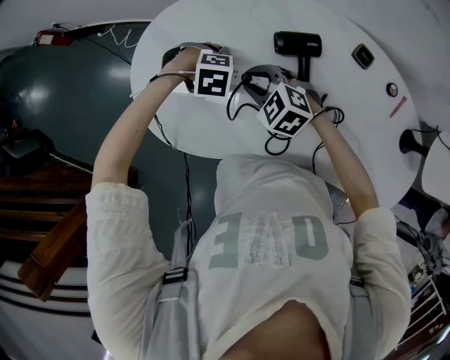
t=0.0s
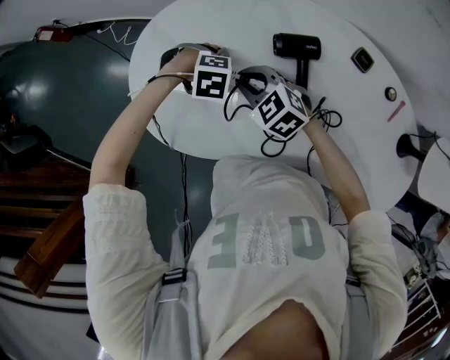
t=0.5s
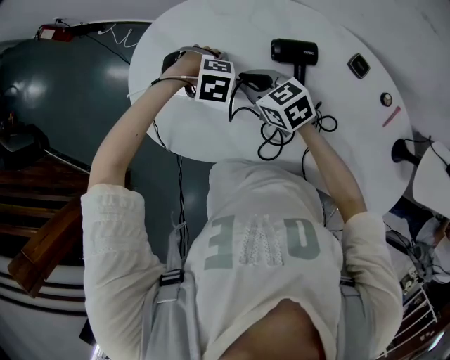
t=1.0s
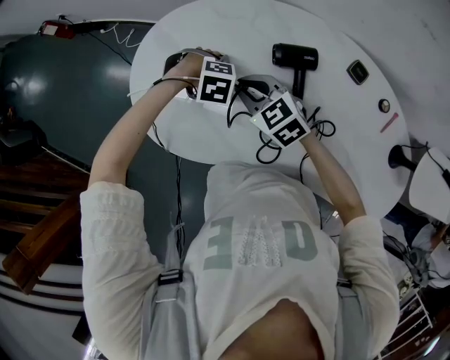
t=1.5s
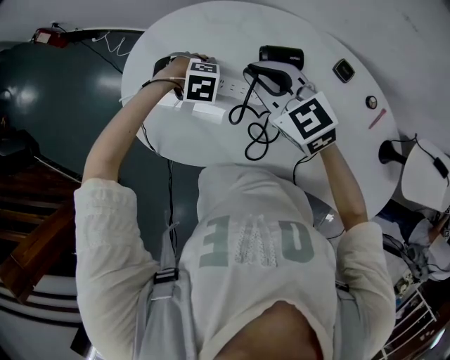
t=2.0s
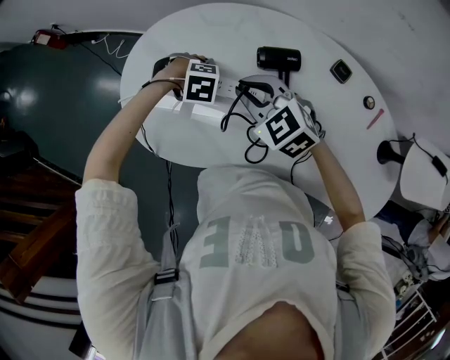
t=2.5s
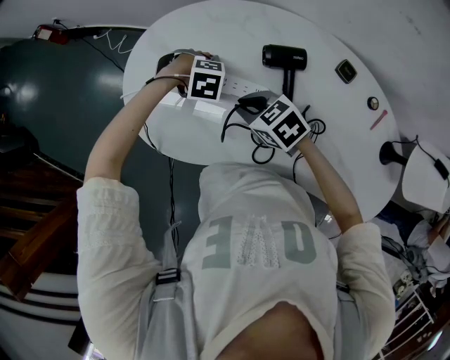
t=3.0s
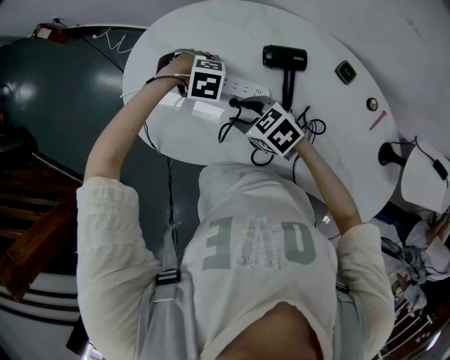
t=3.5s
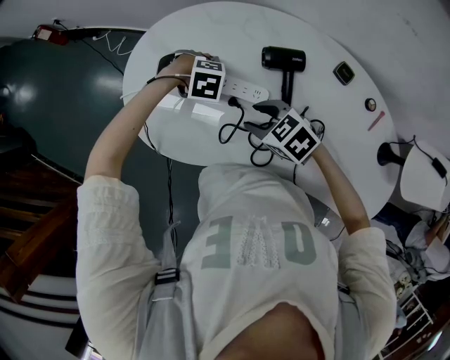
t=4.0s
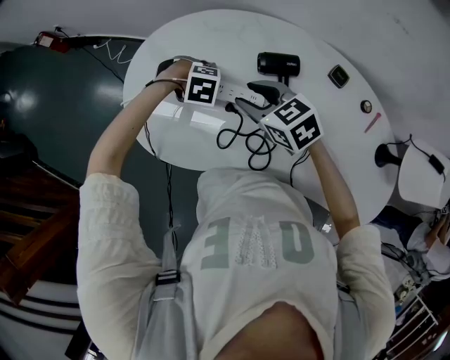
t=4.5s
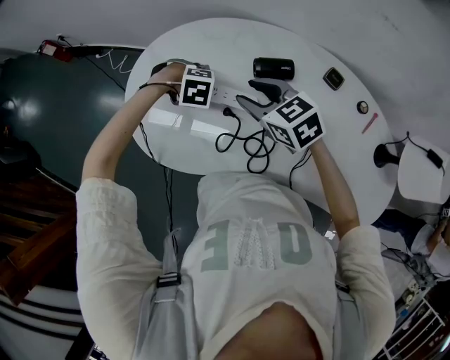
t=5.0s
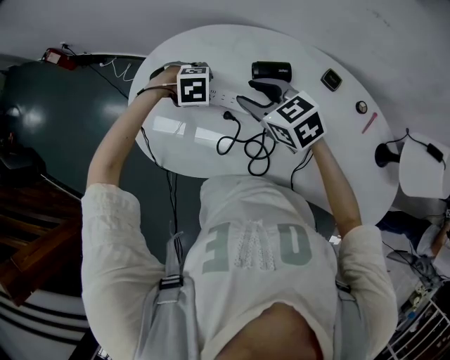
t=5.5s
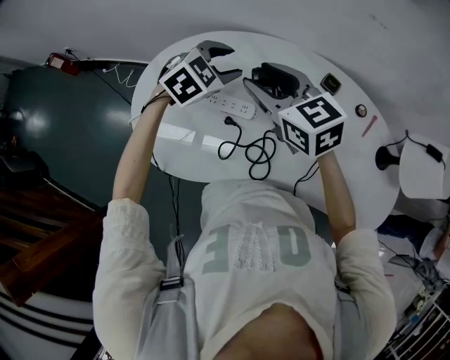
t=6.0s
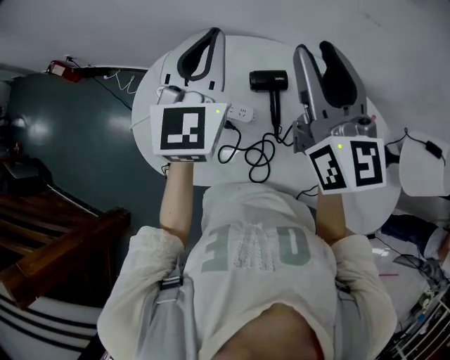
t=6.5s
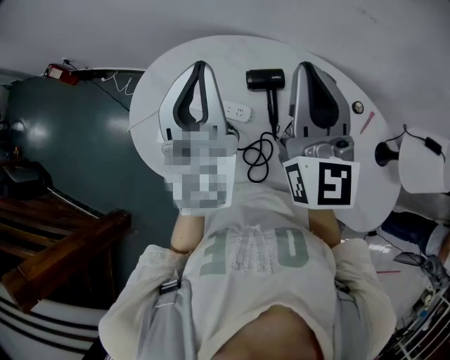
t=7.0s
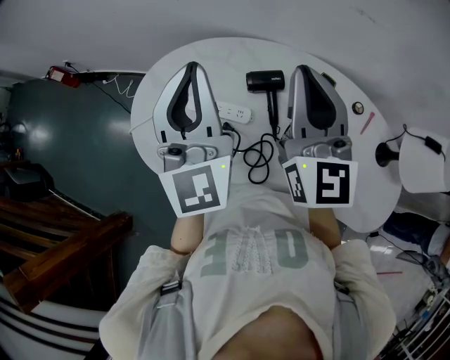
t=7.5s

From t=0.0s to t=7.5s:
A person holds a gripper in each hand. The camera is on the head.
From t=0.0s to t=2.0s: The right gripper goes some 15 cm upward, and turns by approximately 30 degrees.
From t=2.0s to t=4.0s: The right gripper goes about 15 cm downward, changes its angle by about 30 degrees, and opens up.
From t=4.0s to t=5.5s: The right gripper is displaced upward by roughly 10 cm, and swivels approximately 20 degrees, while the left gripper moves approximately 5 cm.
From t=5.5s to t=7.5s: The right gripper heads upward, covering approximately 20 cm, points its fingers approximately 40 degrees further upward, and closes its fingers; the left gripper heads upward, covering some 35 cm, angles its fingers upward, by roughly 90 degrees, and closes its fingers.

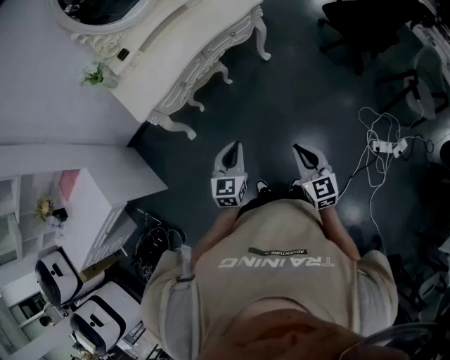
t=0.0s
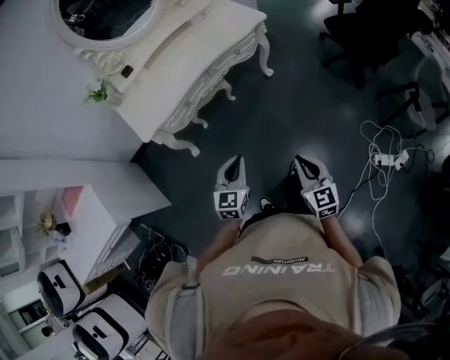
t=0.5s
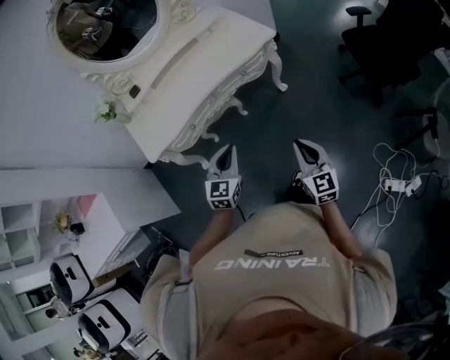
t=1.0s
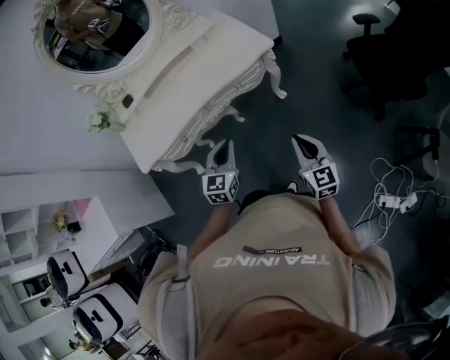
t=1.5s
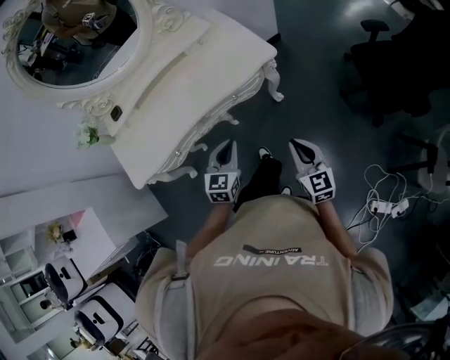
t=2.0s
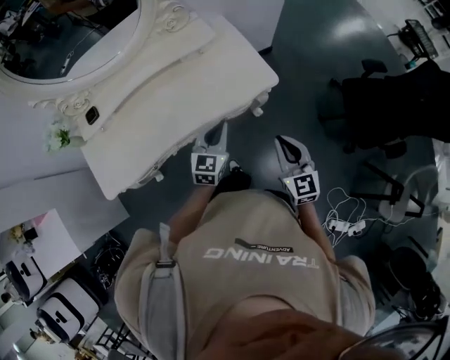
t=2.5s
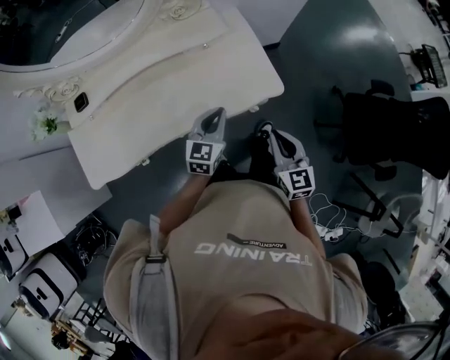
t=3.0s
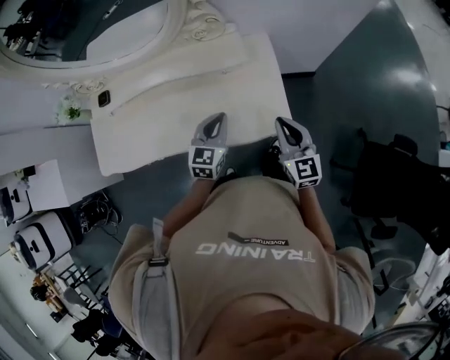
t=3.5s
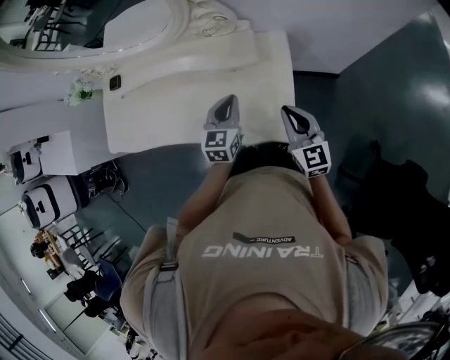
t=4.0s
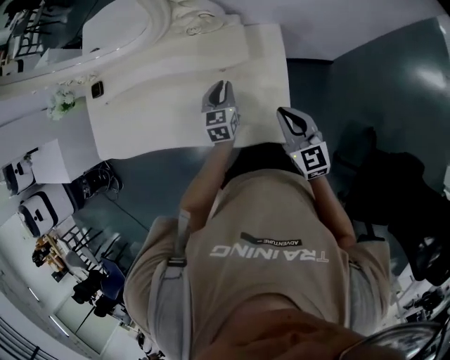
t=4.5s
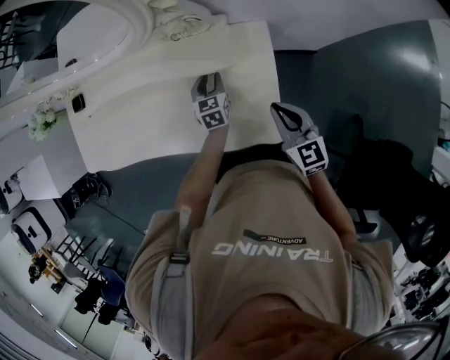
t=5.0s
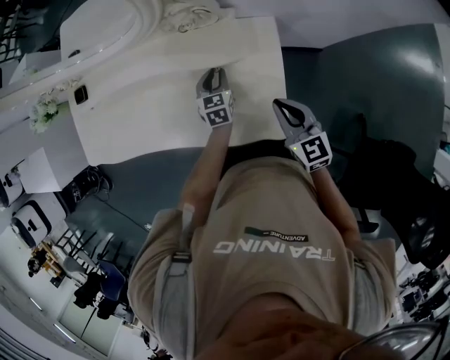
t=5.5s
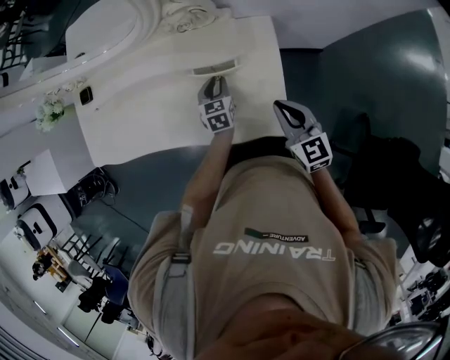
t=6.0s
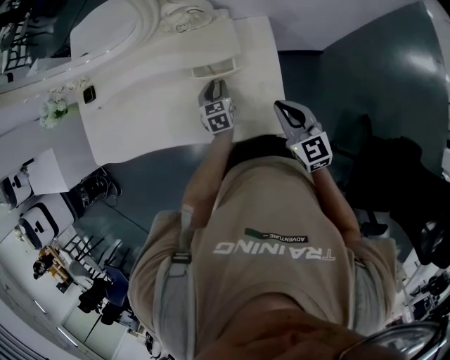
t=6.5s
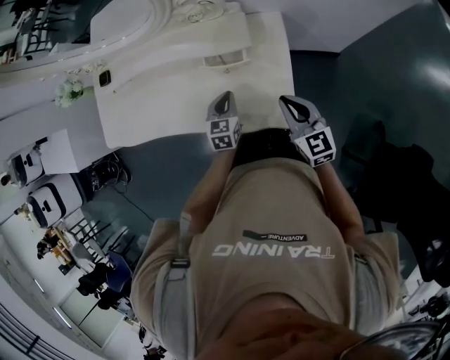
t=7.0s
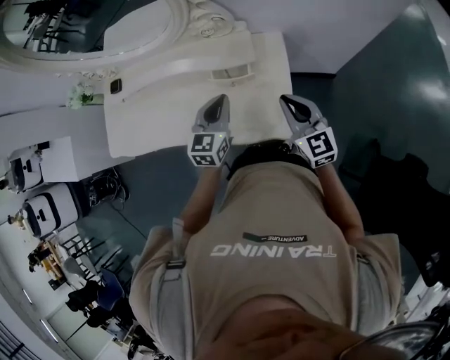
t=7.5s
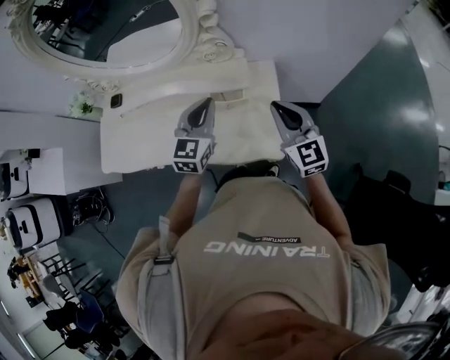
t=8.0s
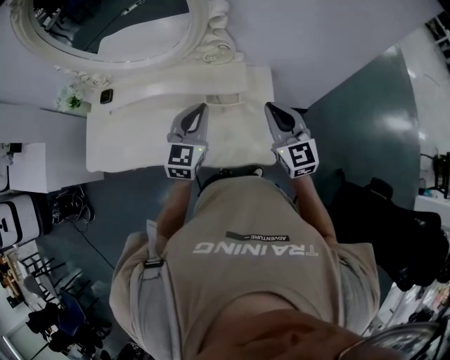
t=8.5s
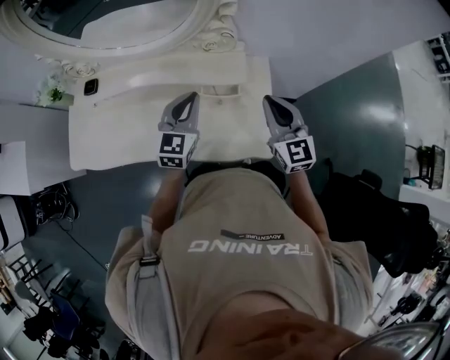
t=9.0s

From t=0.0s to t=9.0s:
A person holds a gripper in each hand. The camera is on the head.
From t=0.0s to t=2.0s: The two grippers travel together, forward, about 50 cm.
From t=2.0s to t=4.5s: The pair of grippers is taken some 60 cm. The left gripper turns by about 40 degrees, while the right gripper changes its angle by about 40 degrees.
From t=4.5s to t=7.0s: The left gripper heads backward, covering some 10 cm.
From t=7.0s to t=9.0s: The right gripper is displaced upward, to the left and forward by about 15 cm, and rotates approximately 20 degrees. The left gripper shifts approximately 20 cm upward and to the left, and swivels approximately 30 degrees.

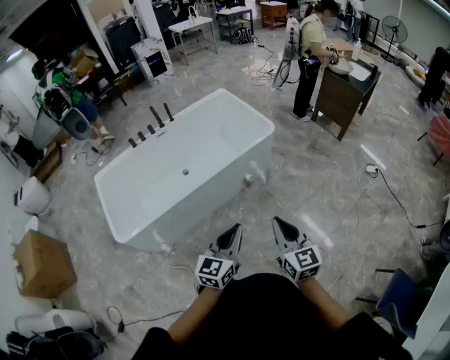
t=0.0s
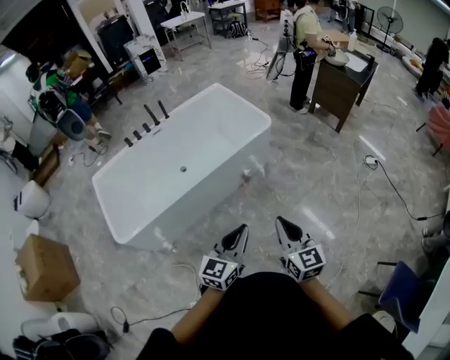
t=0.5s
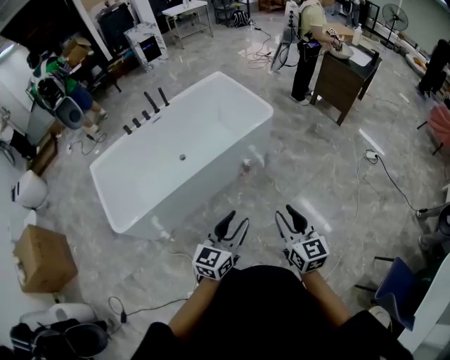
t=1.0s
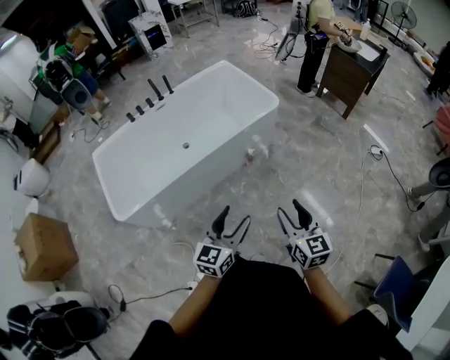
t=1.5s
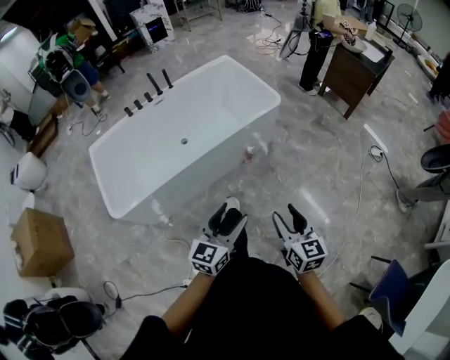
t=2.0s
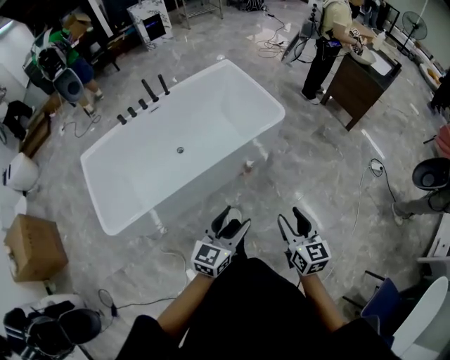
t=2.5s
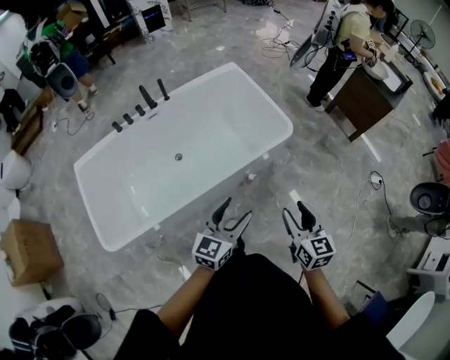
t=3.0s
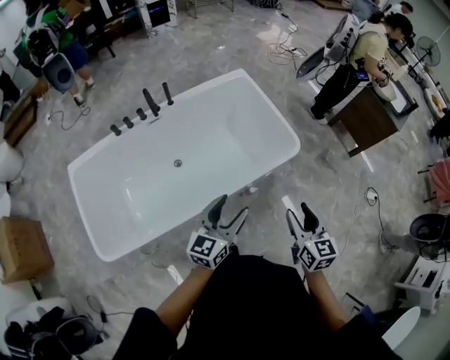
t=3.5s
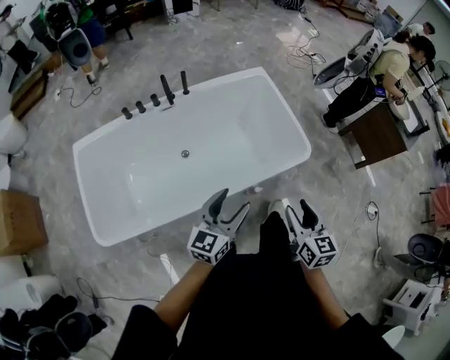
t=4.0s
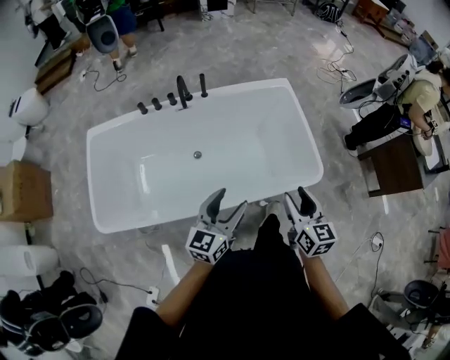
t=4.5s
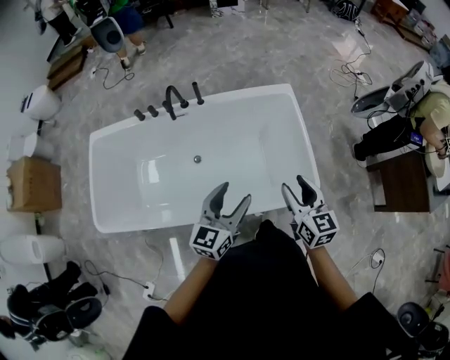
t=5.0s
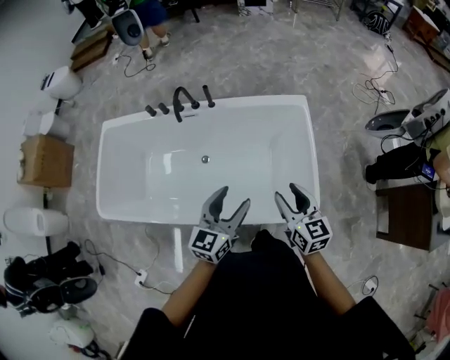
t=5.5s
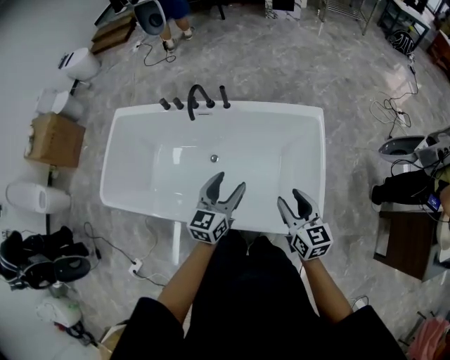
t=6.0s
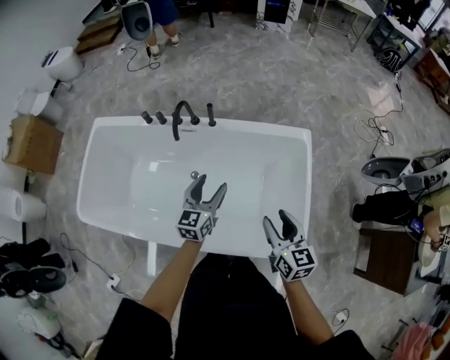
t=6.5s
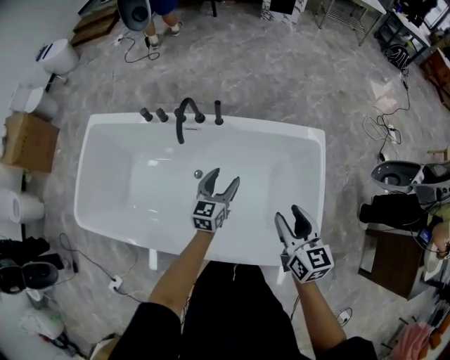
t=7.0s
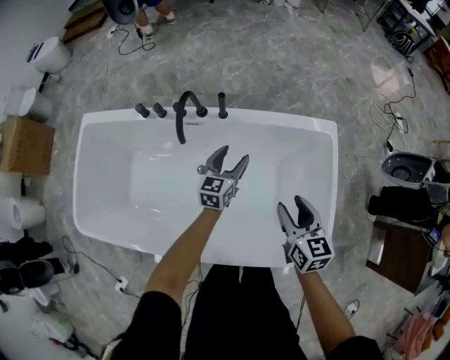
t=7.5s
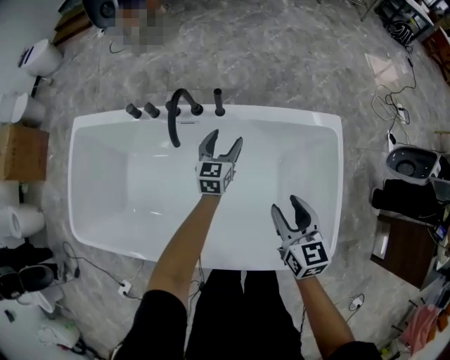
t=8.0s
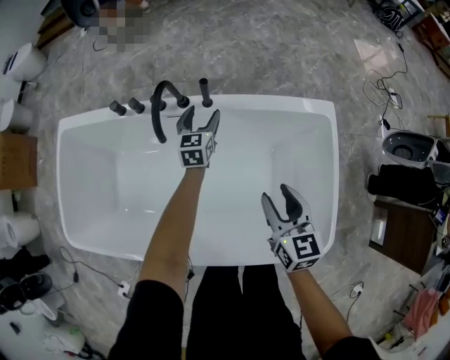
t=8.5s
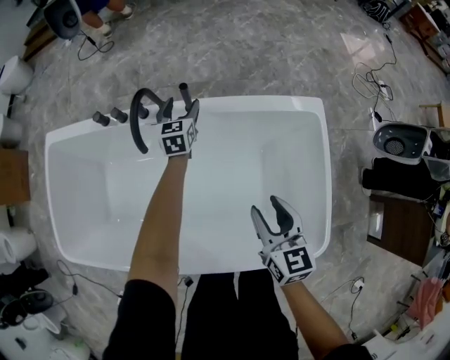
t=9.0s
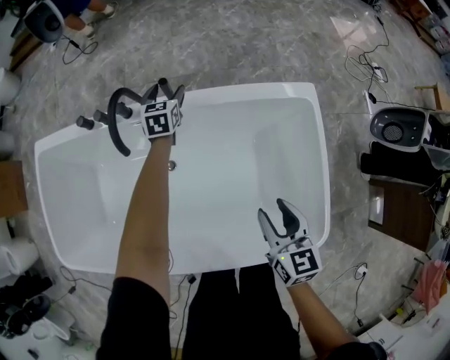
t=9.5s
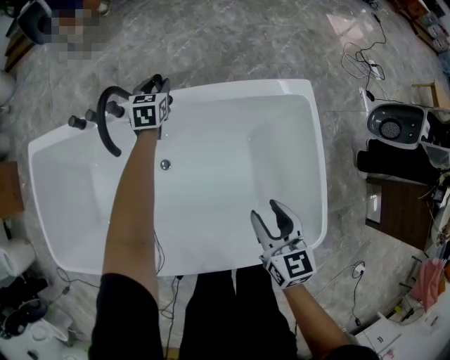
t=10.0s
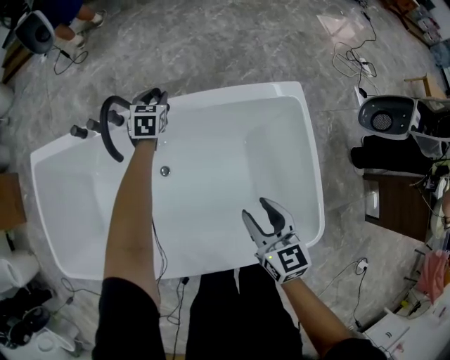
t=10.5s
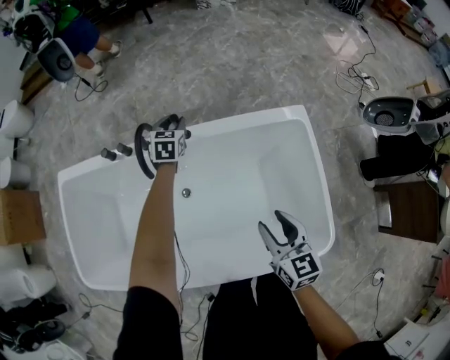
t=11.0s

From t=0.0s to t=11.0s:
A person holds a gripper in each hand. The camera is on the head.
From t=0.0s to t=2.0s: The left gripper opens its fingers. Meanwhile the right gripper goes roughly 5 cm downward, and opens.
From t=2.0s to t=3.5s: The pair of grippers is taken forward, some 40 cm.
From t=3.5s to t=5.5s: The right gripper ends up about 40 cm from where it was, and rotates roughly 40 degrees. The left gripper shifts by roughly 30 cm, and turns by some 30 degrees.
From t=5.5s to t=7.5s: The left gripper heads forward and downward, covering roughly 40 cm. The right gripper moves forward, downward and to the left, about 25 cm.
From t=7.5s to t=9.0s: The right gripper ends up approximately 5 cm from where it was. Meanwhile the left gripper goes about 20 cm forward and downward.
From t=9.0s to t=11.0s: The left gripper shifts approximately 5 cm upward, and closes up, while the right gripper changes place by some 5 cm.
